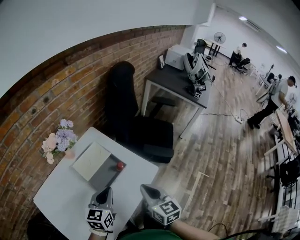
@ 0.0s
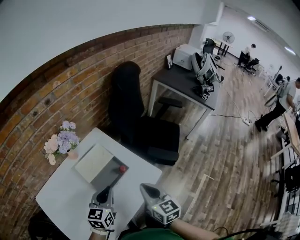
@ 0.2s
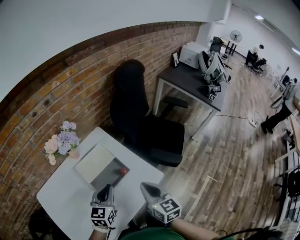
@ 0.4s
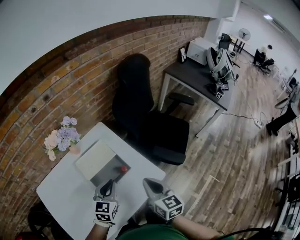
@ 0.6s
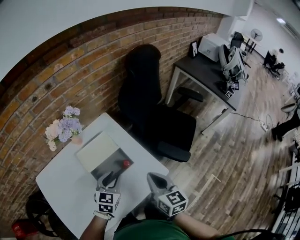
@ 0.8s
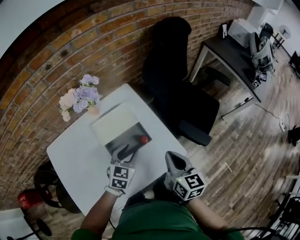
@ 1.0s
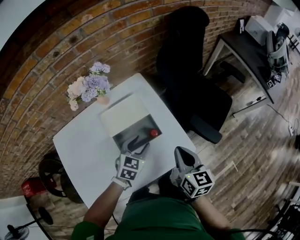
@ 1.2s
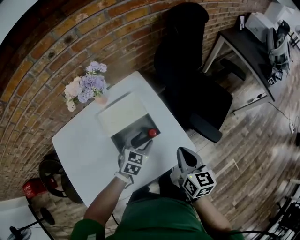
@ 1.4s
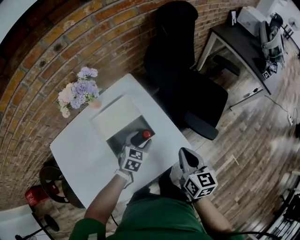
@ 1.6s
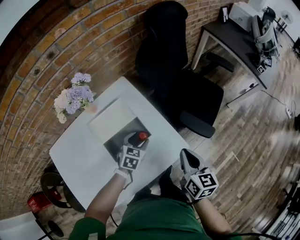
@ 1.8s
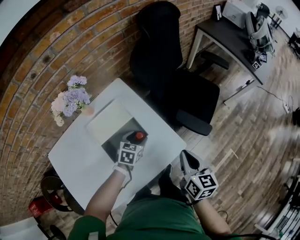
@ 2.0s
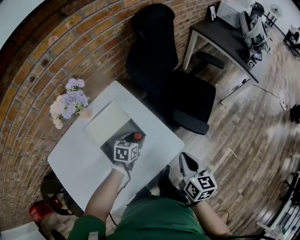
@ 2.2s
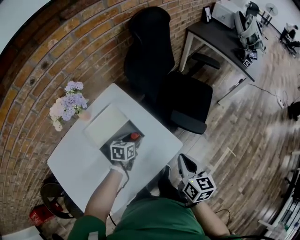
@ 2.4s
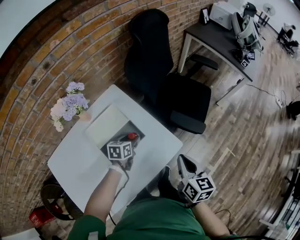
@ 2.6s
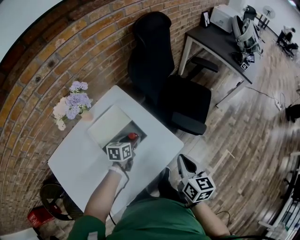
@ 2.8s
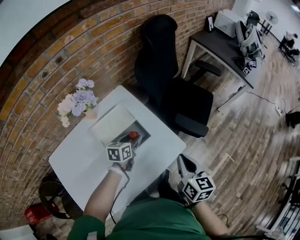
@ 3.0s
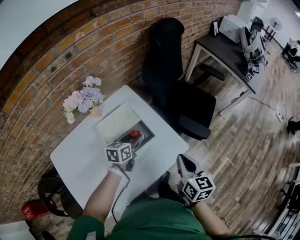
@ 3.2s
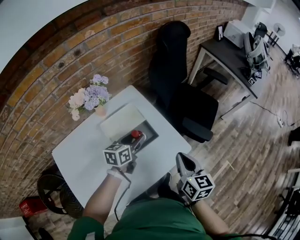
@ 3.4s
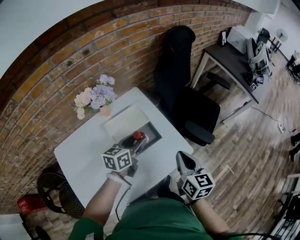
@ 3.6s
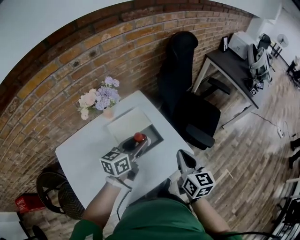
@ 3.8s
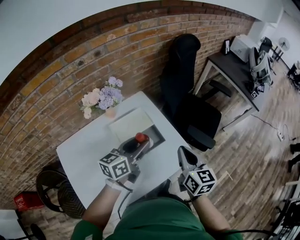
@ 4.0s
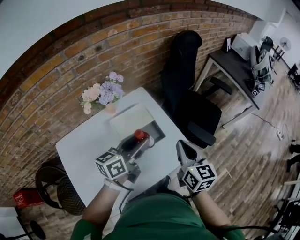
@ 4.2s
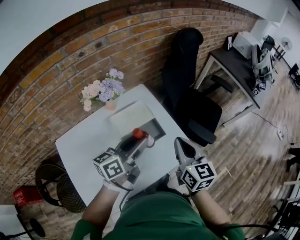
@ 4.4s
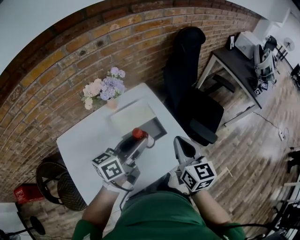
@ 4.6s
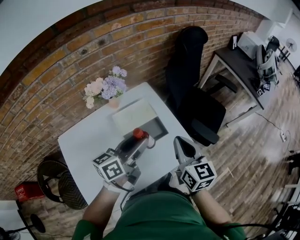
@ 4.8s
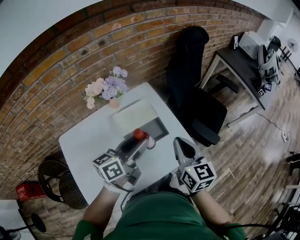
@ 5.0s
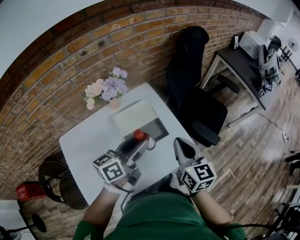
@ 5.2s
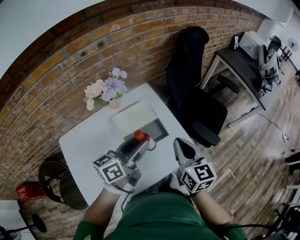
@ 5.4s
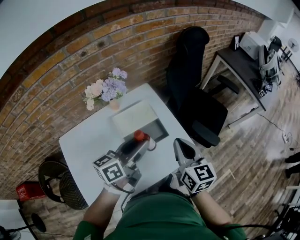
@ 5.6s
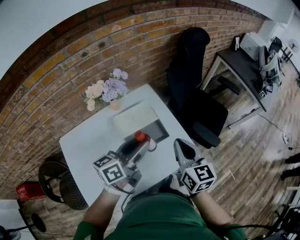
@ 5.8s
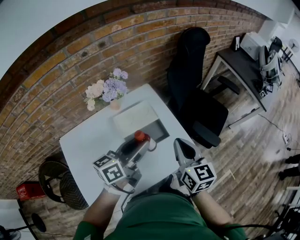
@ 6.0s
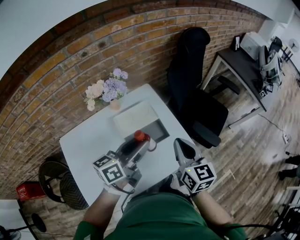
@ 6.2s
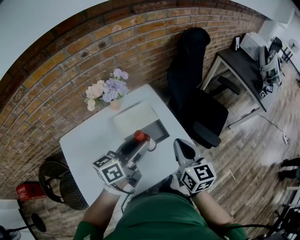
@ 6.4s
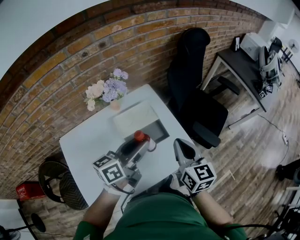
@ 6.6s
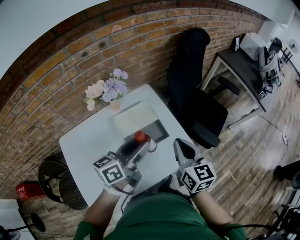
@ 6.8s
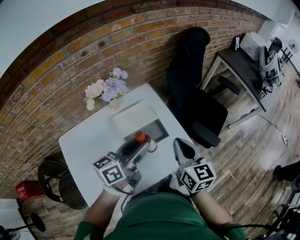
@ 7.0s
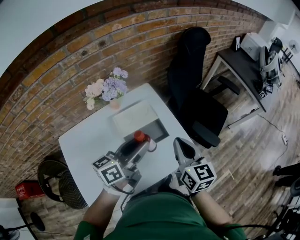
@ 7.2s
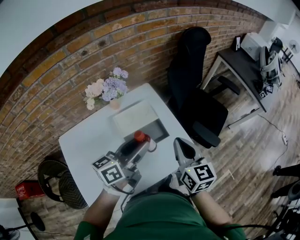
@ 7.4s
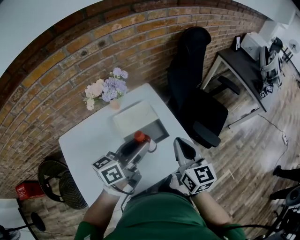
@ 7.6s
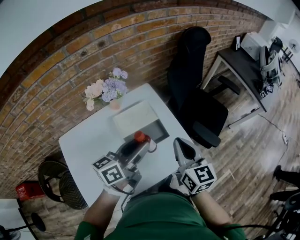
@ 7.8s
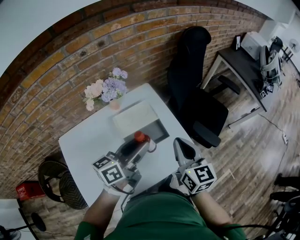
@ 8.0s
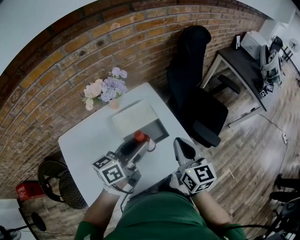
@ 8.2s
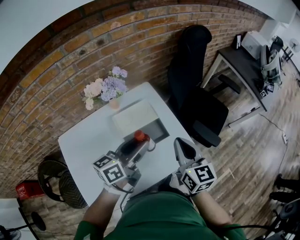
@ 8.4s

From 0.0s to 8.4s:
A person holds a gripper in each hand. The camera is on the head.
From 0.0s to 1.4s: The right gripper travels forward, downward and to the right by about 15 cm. Meanwhile the left gripper shifts some 20 cm downward, forward and to the right, changes its angle by some 30 degrees, and opens up.
From 1.4s to 2.8s: The right gripper goes some 10 cm to the right and backward, while the left gripper turns by about 30 degrees.
From 2.8s to 4.2s: The right gripper shifts roughly 15 cm to the left and upward; the left gripper travels upward by about 25 cm, and tilts its fingers some 40 degrees upward.
From 4.2s to 5.6s: The grippers move only a little.
From 5.6s to 7.0s: Both grippers stay about where they are.
From 7.0s to 8.4s: The grippers move only a little.

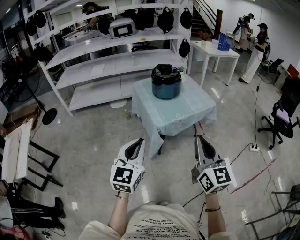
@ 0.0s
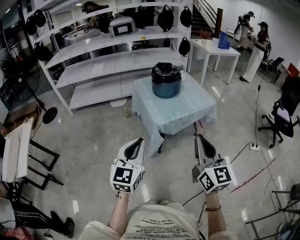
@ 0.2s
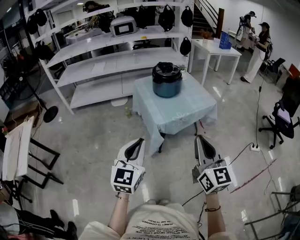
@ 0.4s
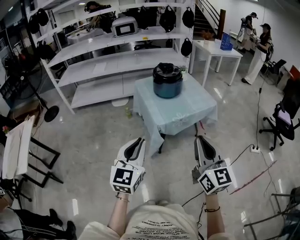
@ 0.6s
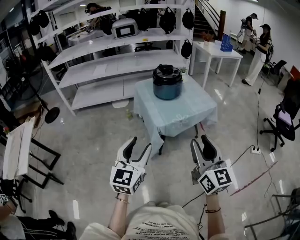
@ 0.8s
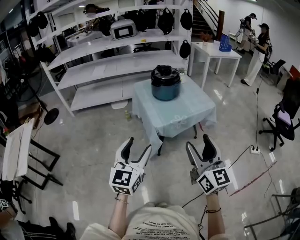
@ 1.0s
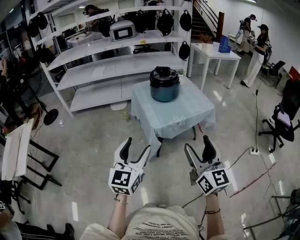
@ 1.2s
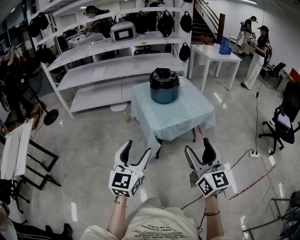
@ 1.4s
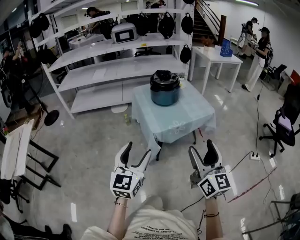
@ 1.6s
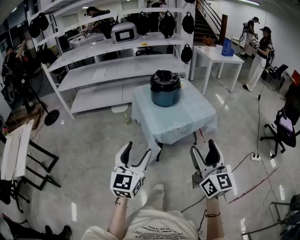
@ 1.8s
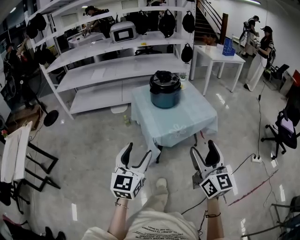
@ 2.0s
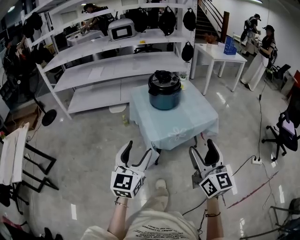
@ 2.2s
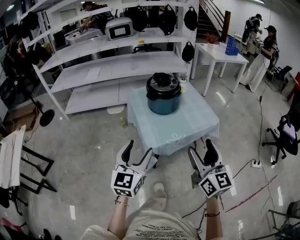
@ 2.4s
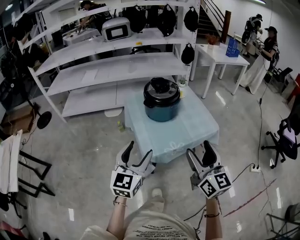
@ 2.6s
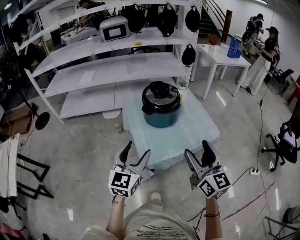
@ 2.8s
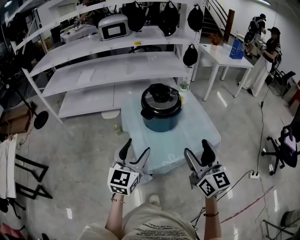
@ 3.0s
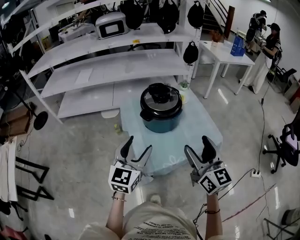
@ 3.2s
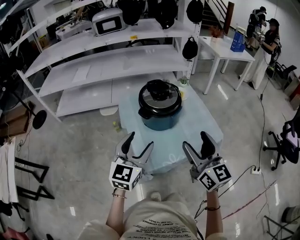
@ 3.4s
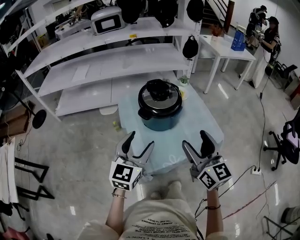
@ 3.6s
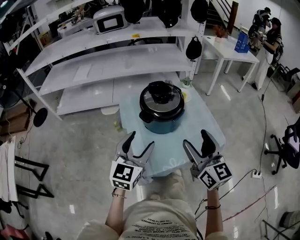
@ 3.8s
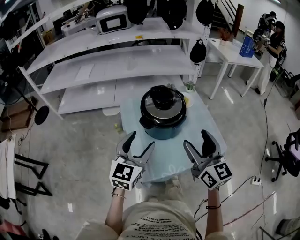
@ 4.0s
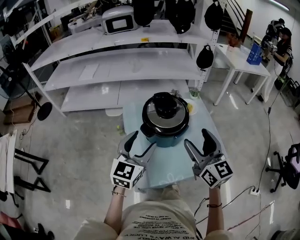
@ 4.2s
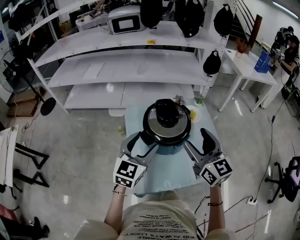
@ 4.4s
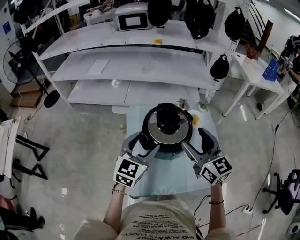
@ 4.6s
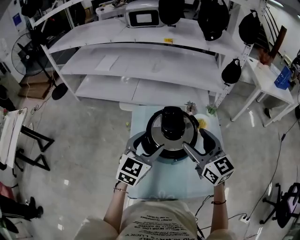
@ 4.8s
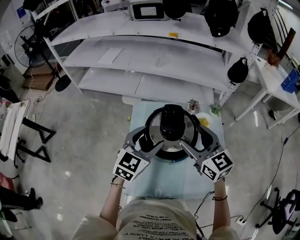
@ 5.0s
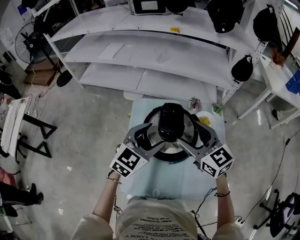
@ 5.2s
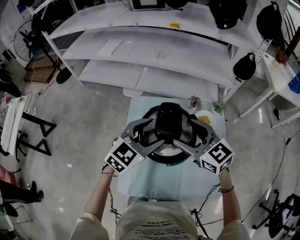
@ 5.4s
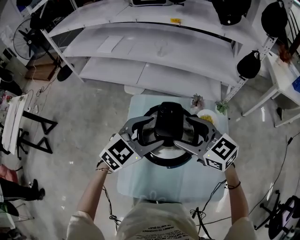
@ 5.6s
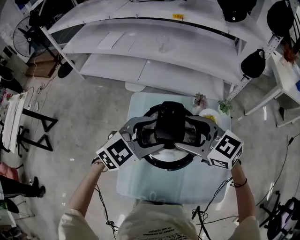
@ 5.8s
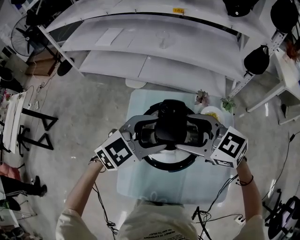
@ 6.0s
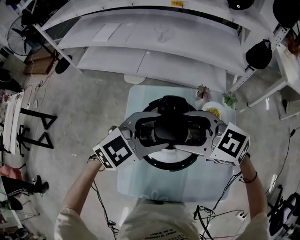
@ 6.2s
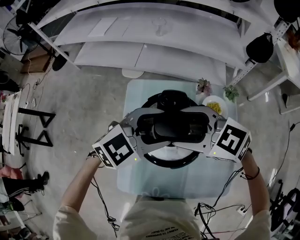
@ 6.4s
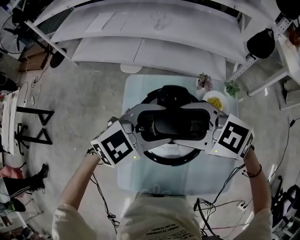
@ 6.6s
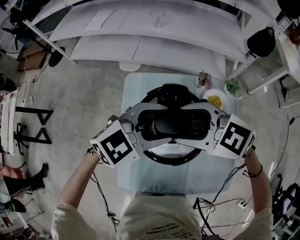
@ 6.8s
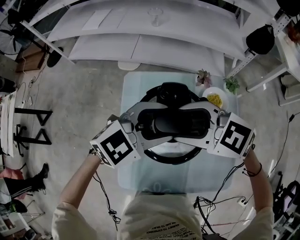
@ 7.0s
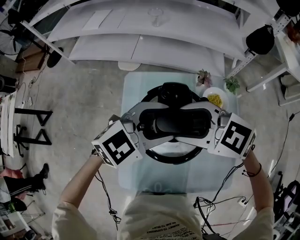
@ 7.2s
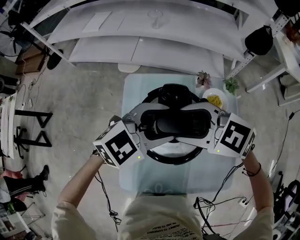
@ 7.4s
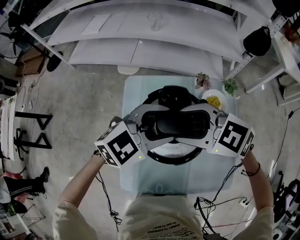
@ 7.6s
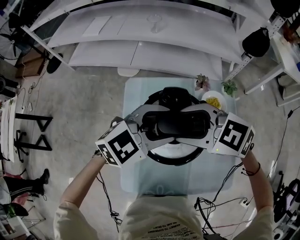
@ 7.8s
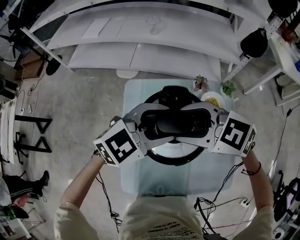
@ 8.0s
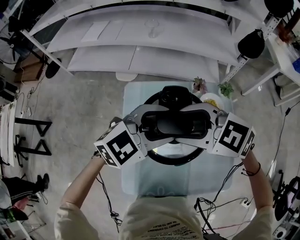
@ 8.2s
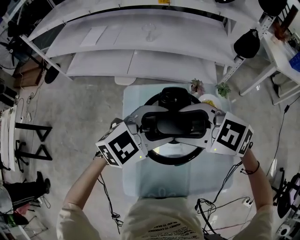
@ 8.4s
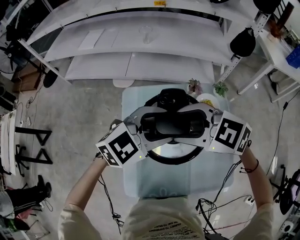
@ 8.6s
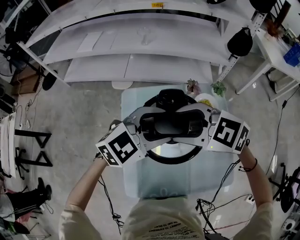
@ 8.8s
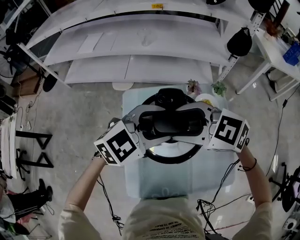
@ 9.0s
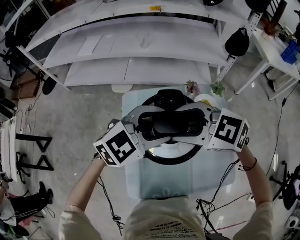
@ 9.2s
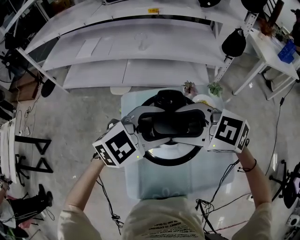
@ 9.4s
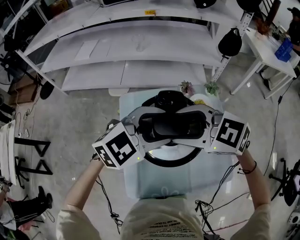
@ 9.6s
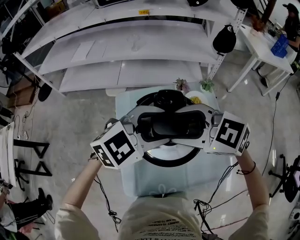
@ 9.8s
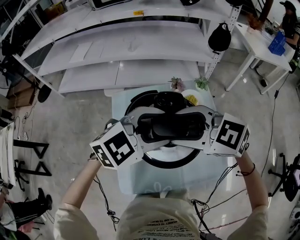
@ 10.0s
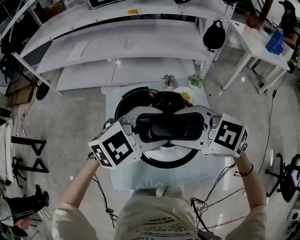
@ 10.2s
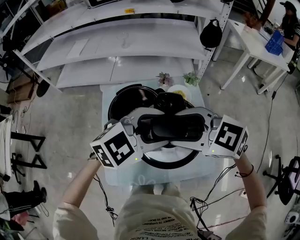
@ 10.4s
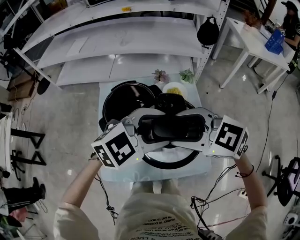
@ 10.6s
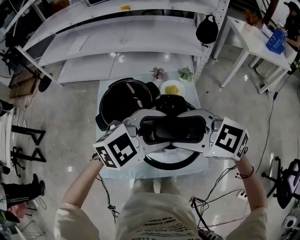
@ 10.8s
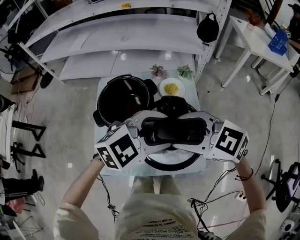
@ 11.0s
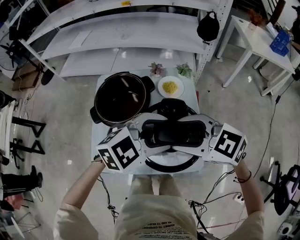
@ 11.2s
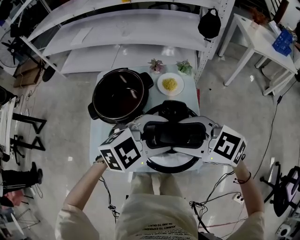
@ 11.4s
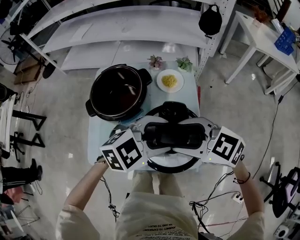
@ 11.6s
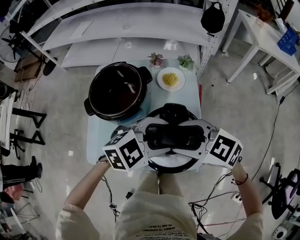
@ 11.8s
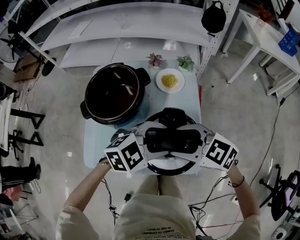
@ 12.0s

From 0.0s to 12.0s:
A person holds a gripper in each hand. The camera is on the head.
From 0.0s to 1.6s: The left gripper opens up; the right gripper moves approximately 5 cm, and opens.
From 1.6s to 3.0s: Both grippers travel together forward, roughly 35 cm.
From 3.0s to 4.4s: The two grippers go roughly 20 cm forward.
From 4.4s to 6.0s: The right gripper shifts by about 15 cm, and changes its angle by roughly 60 degrees. Meanwhile the left gripper shifts by roughly 15 cm, and rotates some 30 degrees.
From 6.0s to 9.0s: The grippers stay close to where they were, moving slightly.
From 9.0s to 10.4s: The right gripper moves some 15 cm. Meanwhile the left gripper shifts by approximately 15 cm.
From 10.4s to 12.0s: The grippers both shift downward by about 15 cm.

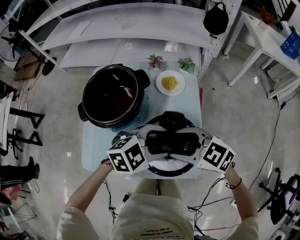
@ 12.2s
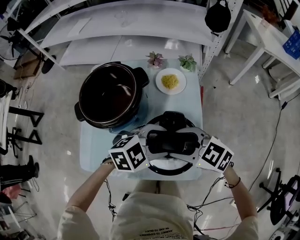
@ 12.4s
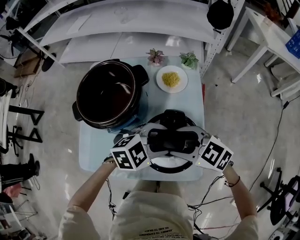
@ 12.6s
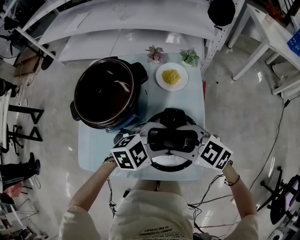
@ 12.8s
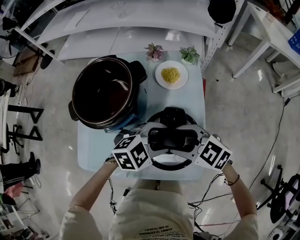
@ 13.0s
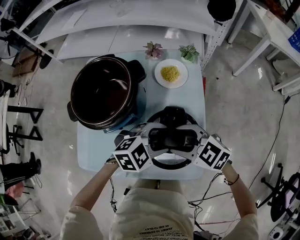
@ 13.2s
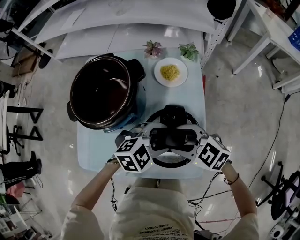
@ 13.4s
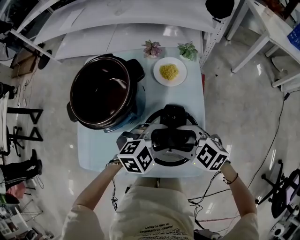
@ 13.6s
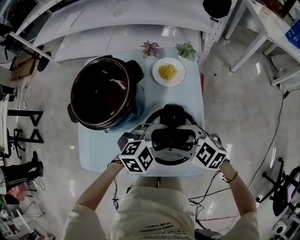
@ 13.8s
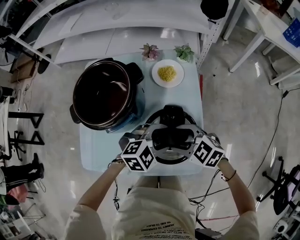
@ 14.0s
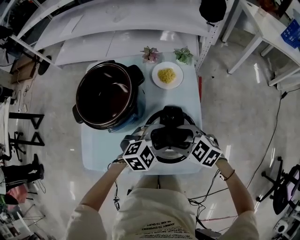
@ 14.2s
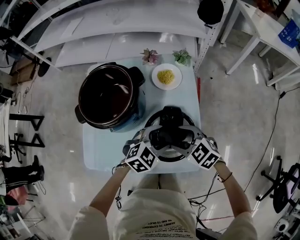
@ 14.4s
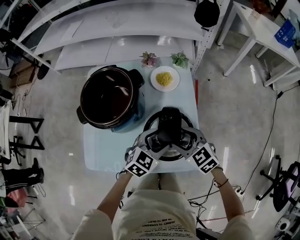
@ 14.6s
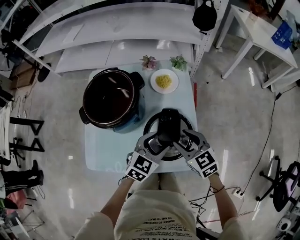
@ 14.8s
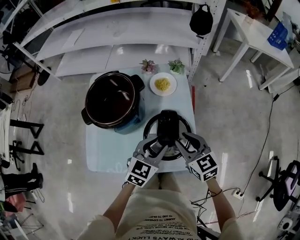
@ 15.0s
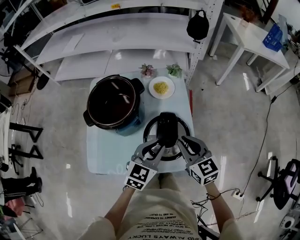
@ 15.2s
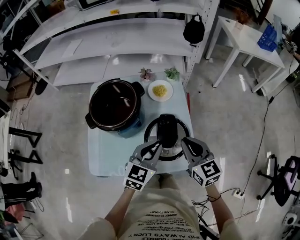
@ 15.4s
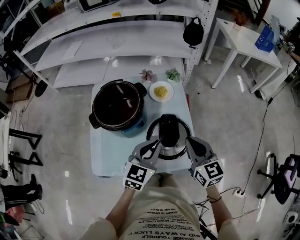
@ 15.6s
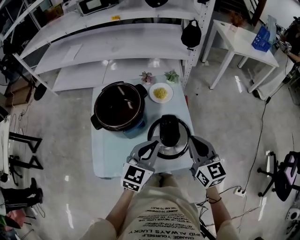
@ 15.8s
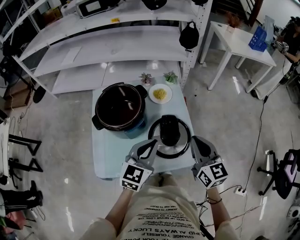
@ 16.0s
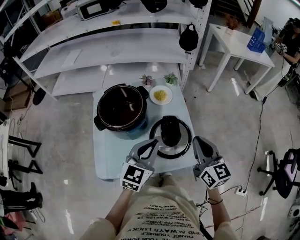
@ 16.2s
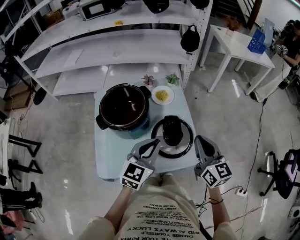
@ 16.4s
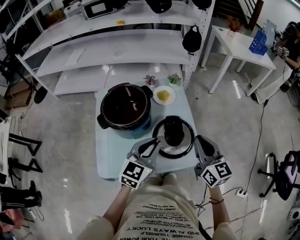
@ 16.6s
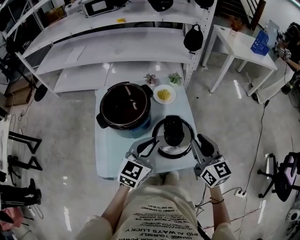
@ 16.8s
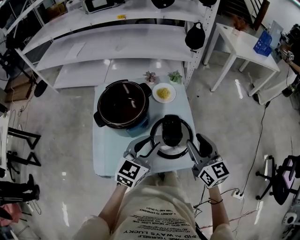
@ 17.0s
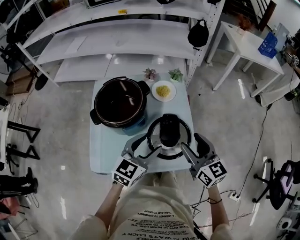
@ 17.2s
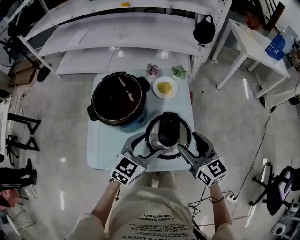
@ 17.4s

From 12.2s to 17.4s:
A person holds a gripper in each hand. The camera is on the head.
From 12.2s to 14.0s: The two grippers go approximately 10 cm downward.
From 14.0s to 15.6s: The two grippers go some 15 cm upward. The left gripper swivels about 50 degrees, and closes its fingers. Meanwhile the right gripper changes its angle by approximately 60 degrees, and closes.
From 15.6s to 17.4s: The right gripper opens its fingers. Meanwhile the left gripper opens up.
